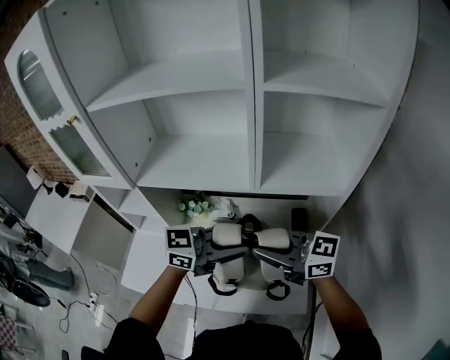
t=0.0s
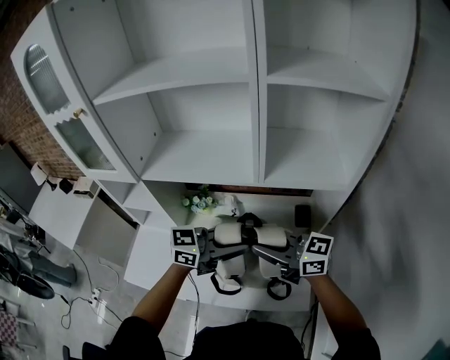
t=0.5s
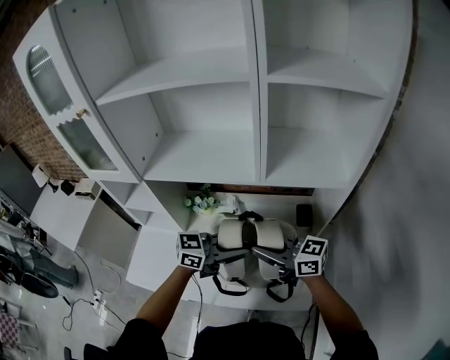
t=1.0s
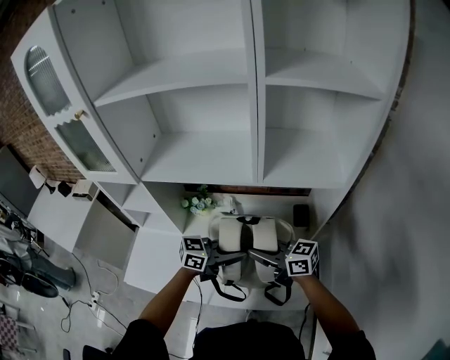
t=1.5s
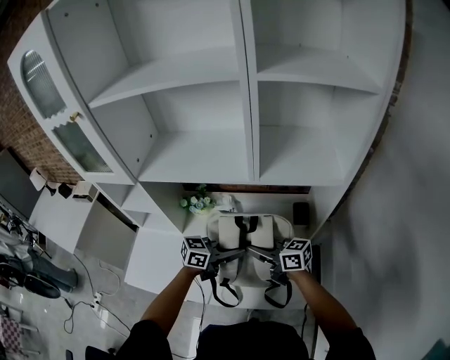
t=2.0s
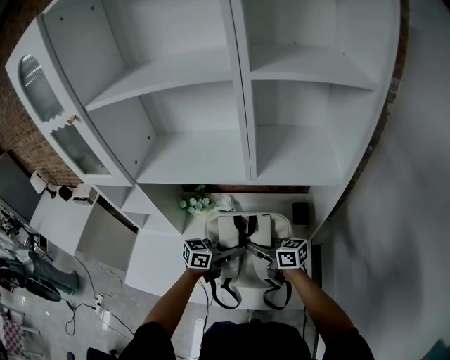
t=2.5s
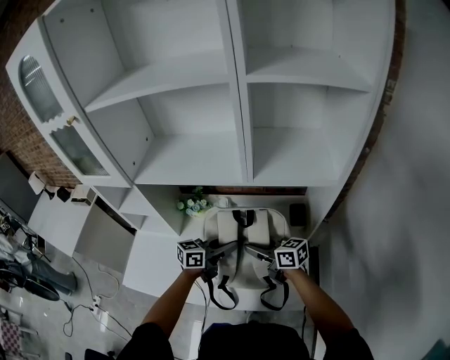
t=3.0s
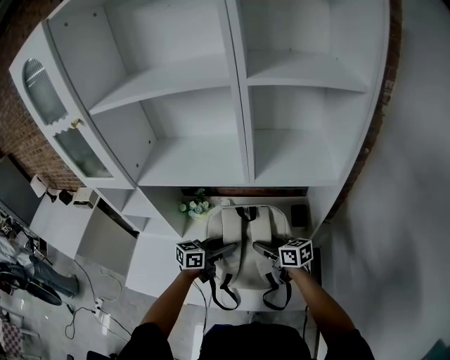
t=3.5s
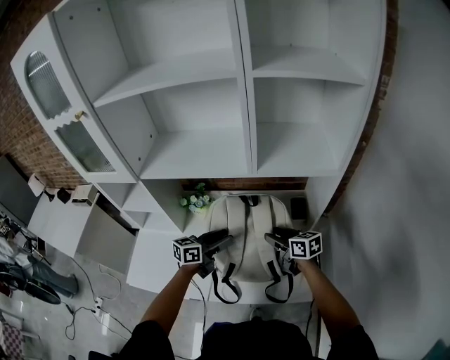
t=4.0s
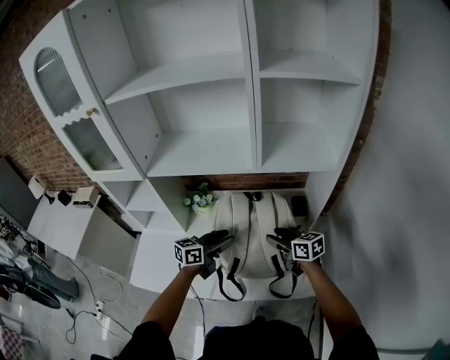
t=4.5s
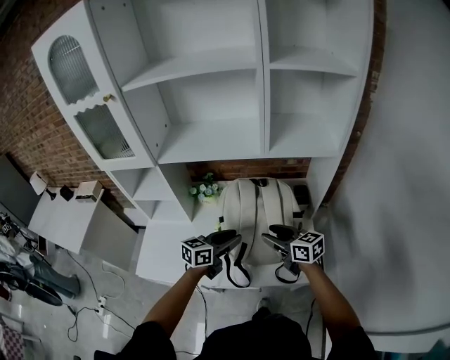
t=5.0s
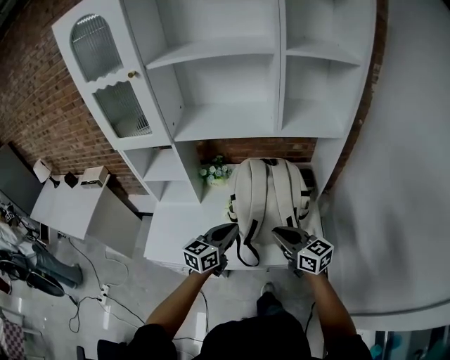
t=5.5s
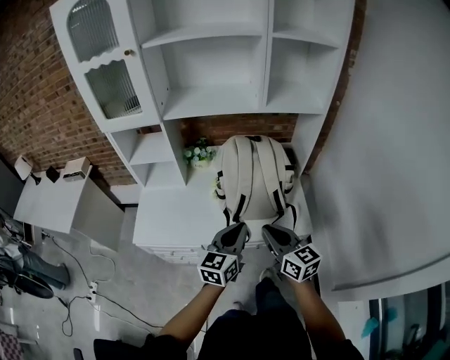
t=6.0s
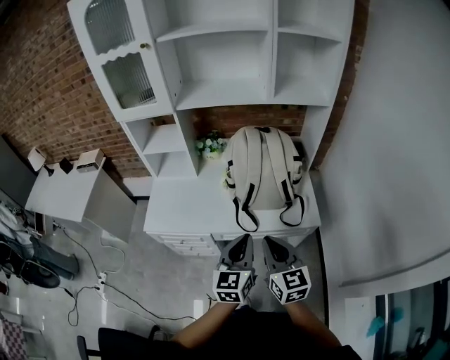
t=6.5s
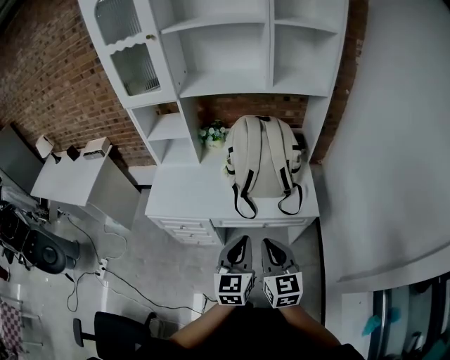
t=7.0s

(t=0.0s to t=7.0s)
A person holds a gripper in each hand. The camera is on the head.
t=0.0s - t=2.0s: Both grippers move downward, some 20 cm. The right gripper swivels about 20 degrees.
t=2.0s - t=3.5s: The left gripper changes place by some 5 cm, and opens; the right gripper changes place by approximately 5 cm, and opens its fingers.
t=3.5s - t=5.0s: The grippers both shift backward by some 10 cm.
t=5.0s - t=7.0s: Both grippers travel together backward, roughly 35 cm. The right gripper swivels about 40 degrees, and closes up, while the left gripper swivels some 40 degrees, and closes its fingers.

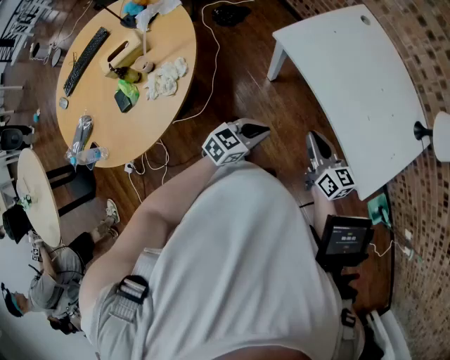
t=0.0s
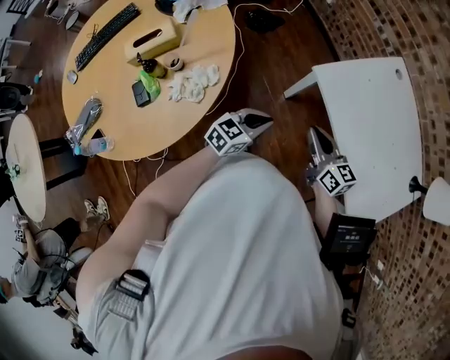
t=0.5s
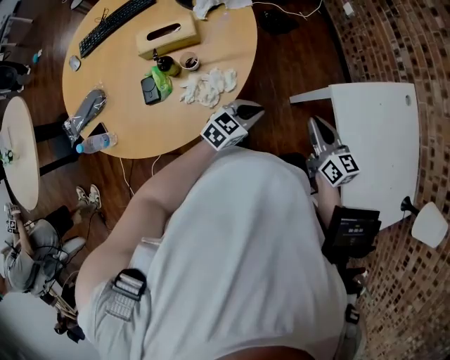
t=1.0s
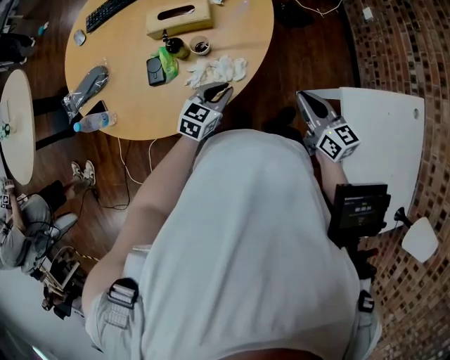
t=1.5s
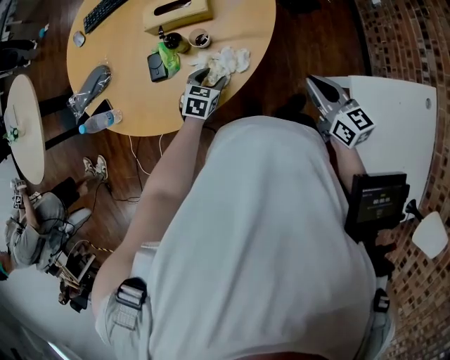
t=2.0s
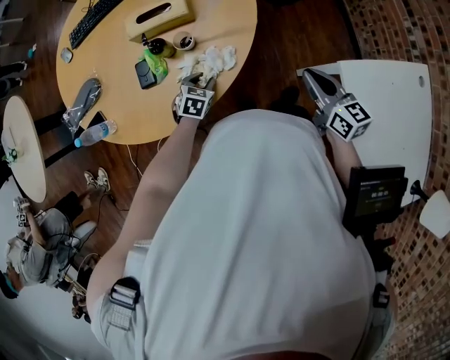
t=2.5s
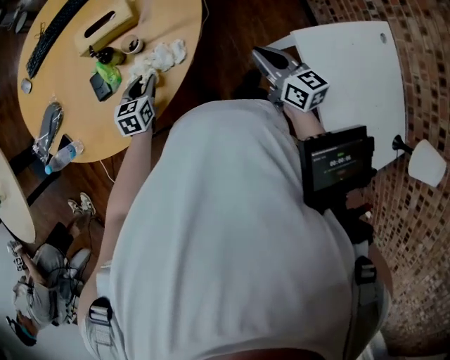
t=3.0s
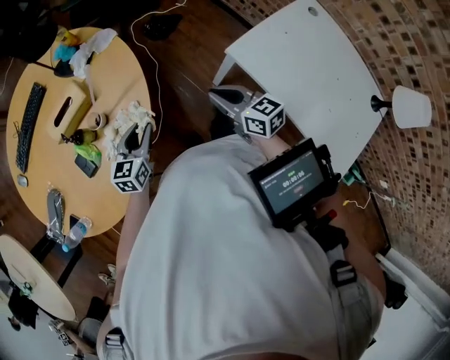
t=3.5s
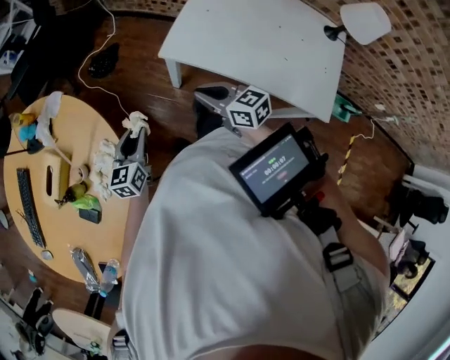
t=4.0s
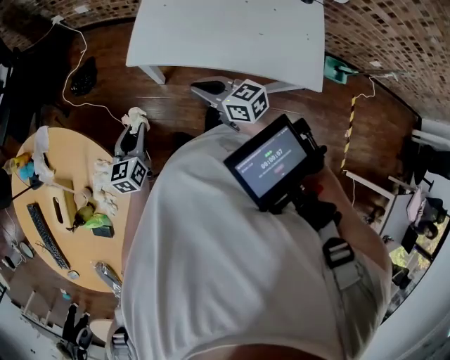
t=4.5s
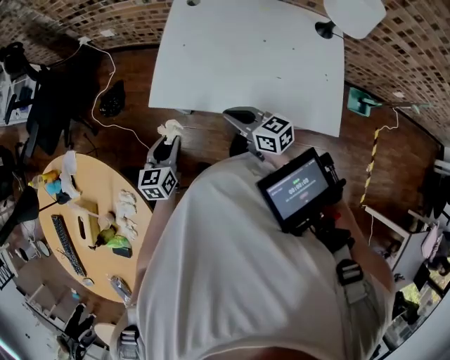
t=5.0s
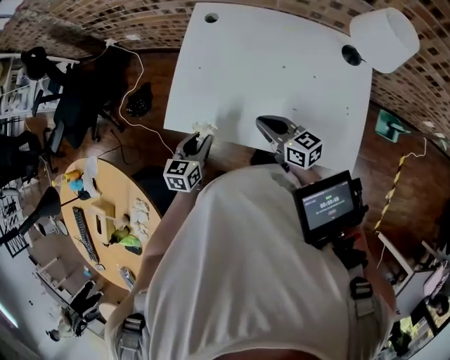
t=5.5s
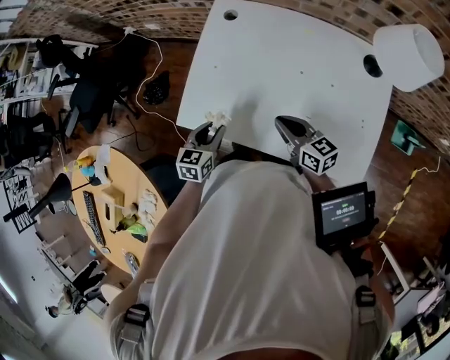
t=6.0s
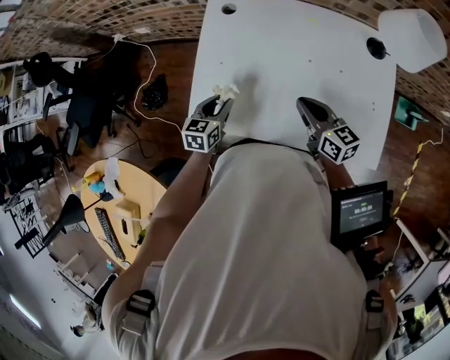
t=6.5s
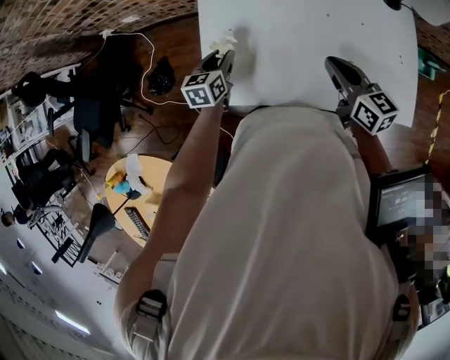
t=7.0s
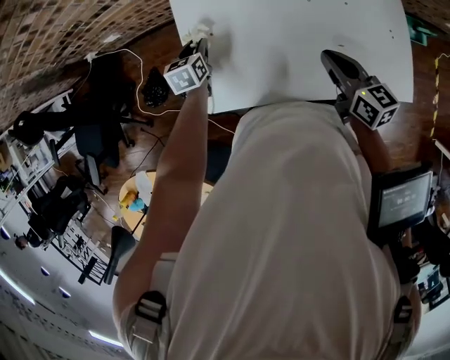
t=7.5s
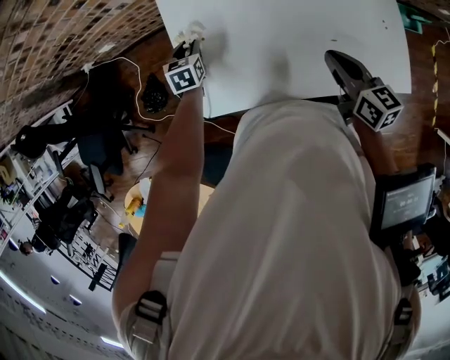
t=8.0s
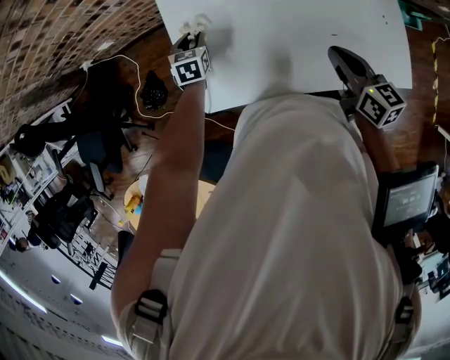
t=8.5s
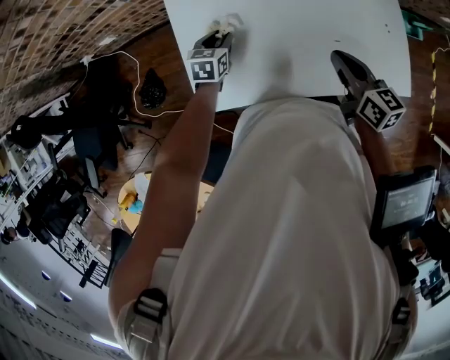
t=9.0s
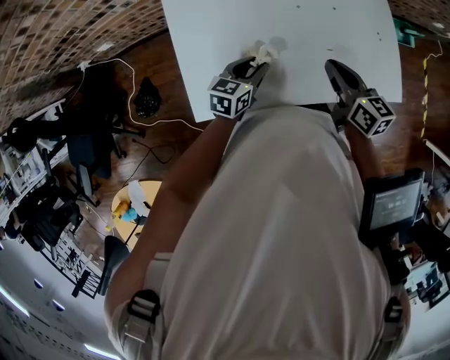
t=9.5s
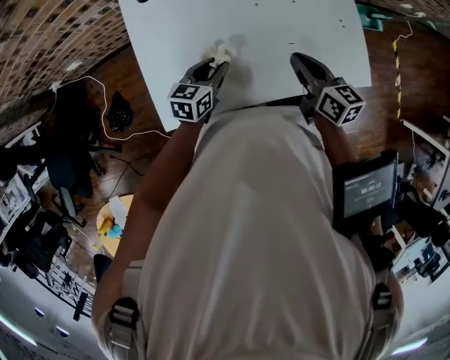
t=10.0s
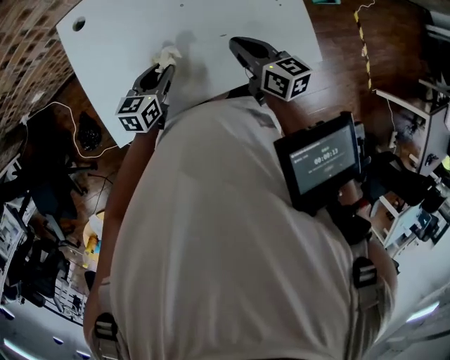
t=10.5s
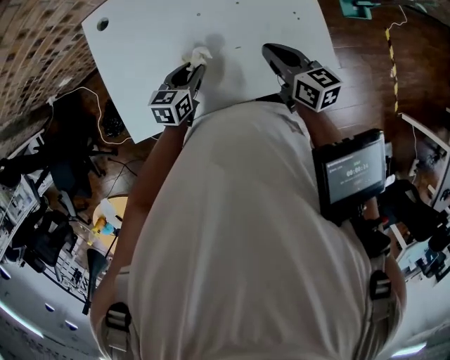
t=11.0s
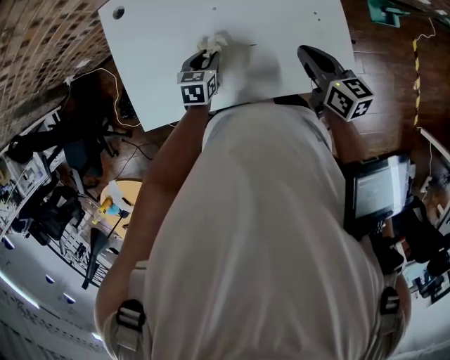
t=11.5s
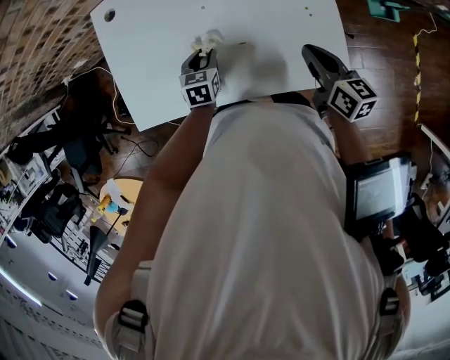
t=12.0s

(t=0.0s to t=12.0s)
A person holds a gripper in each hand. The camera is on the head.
t=0.0s - t=2.0s: The left gripper ends up about 50 cm from where it was, turns by approximately 60 degrees, and opens up, while the right gripper ends up about 40 cm from where it was, and swivels some 40 degrees.
t=2.0s - t=4.0s: The left gripper shifts by some 25 cm, swivels some 50 degrees, and closes its fingers; the right gripper ends up about 20 cm from where it was, and swivels some 40 degrees.
t=4.0s - t=6.0s: The right gripper heads to the right, covering approximately 30 cm, and rotates about 20 degrees; the left gripper travels to the right and forward by some 35 cm, and changes its angle by approximately 30 degrees.
t=6.0s - t=8.0s: The left gripper shifts approximately 25 cm forward, while the right gripper rotates roughly 40 degrees.
t=8.0s - t=10.0s: The left gripper moves to the right and backward, approximately 20 cm, and rotates roughly 40 degrees.
t=10.0s - t=12.0s: The left gripper shifts about 10 cm to the right, and swivels about 30 degrees; the right gripper travels to the right by roughly 20 cm.

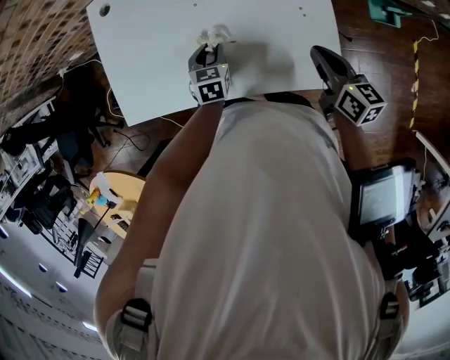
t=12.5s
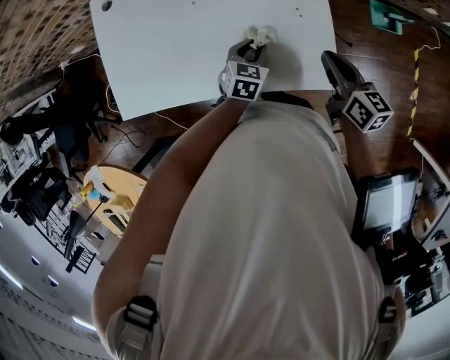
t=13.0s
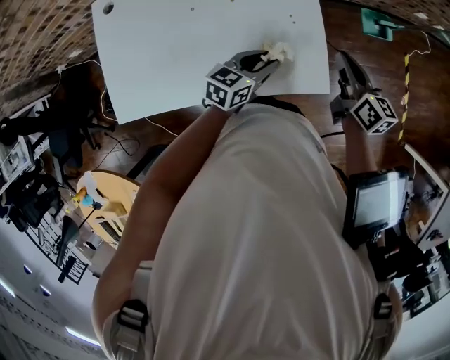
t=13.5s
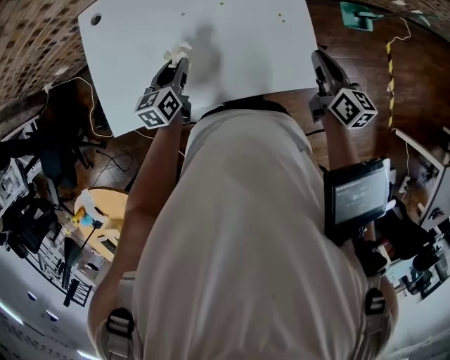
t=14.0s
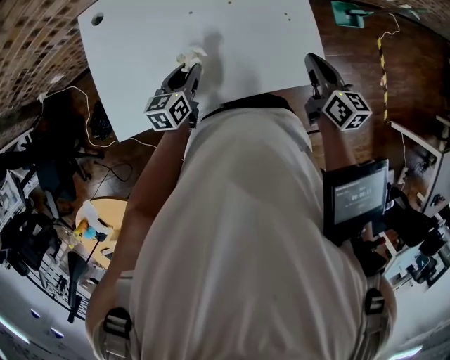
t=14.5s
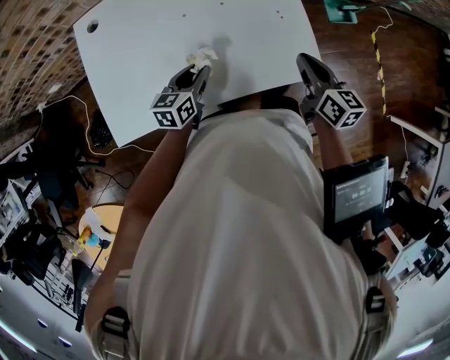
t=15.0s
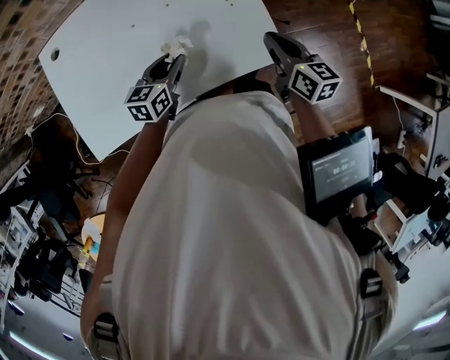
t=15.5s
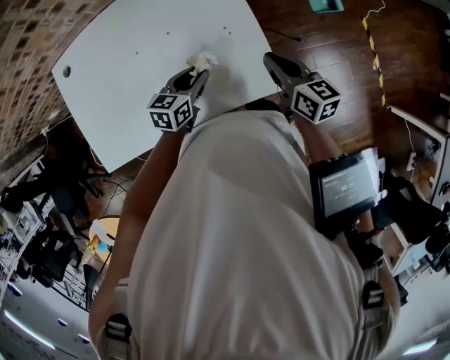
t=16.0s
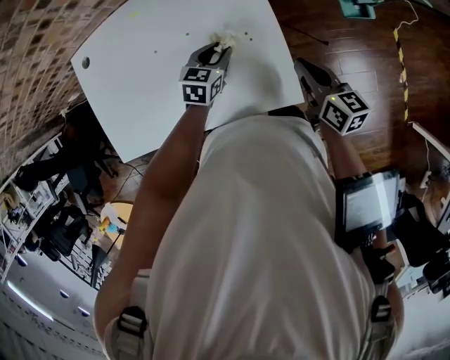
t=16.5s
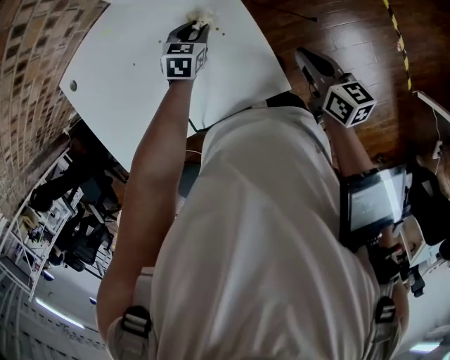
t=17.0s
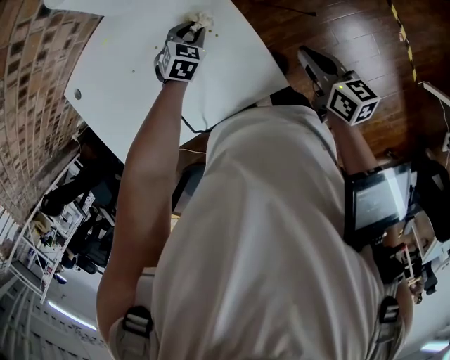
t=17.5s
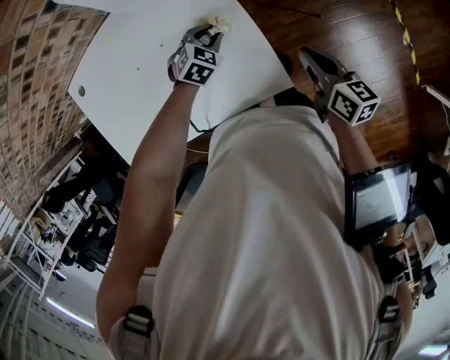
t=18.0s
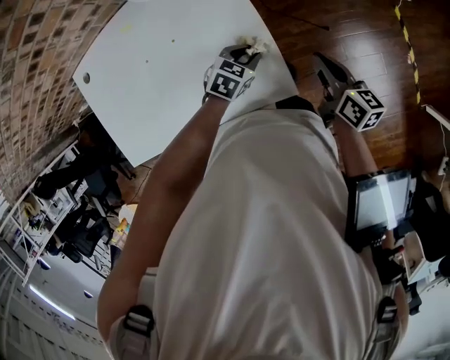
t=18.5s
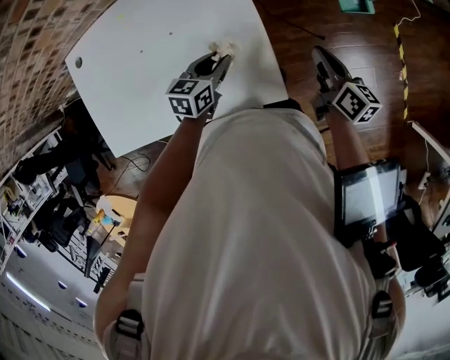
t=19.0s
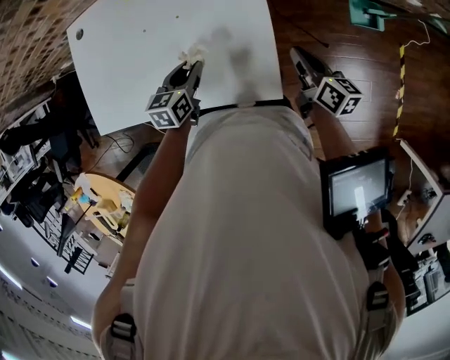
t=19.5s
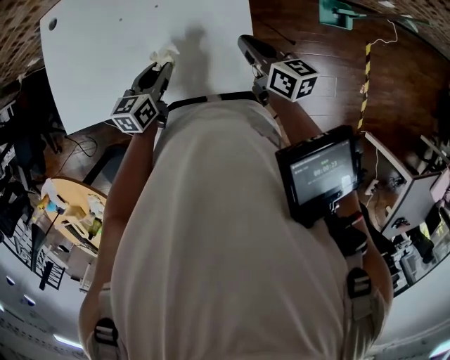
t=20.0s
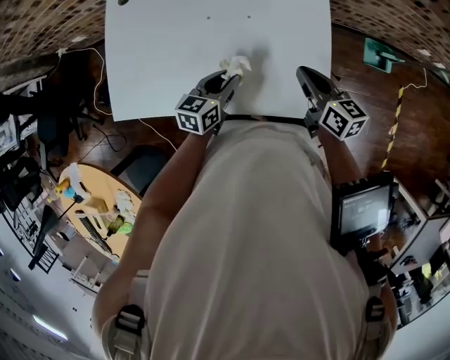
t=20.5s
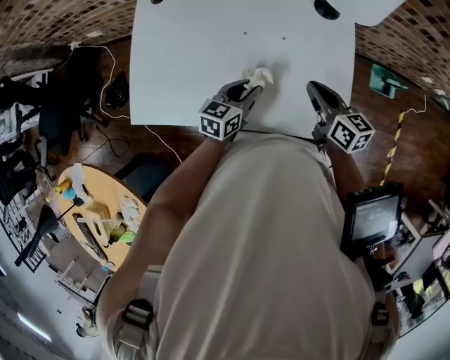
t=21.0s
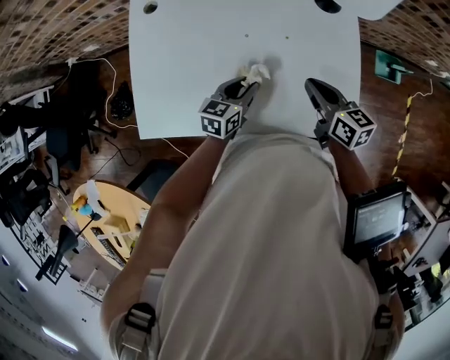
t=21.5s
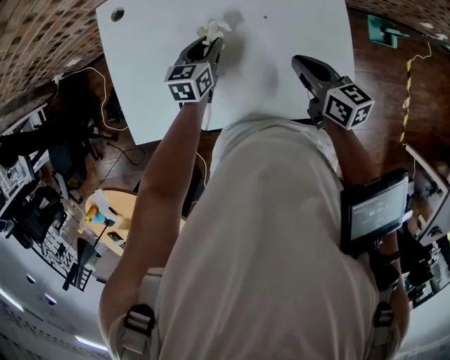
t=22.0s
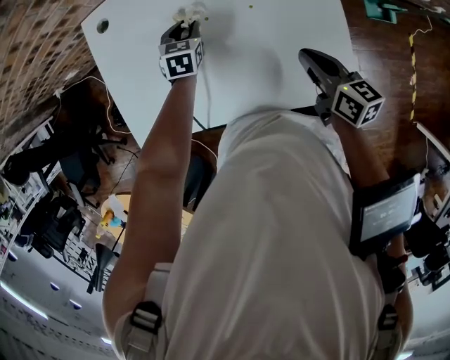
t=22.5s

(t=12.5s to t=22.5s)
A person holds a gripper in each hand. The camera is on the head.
t=12.5s - t=14.5s: The left gripper turns by roughly 30 degrees.
t=14.5s - t=16.5s: The left gripper is displaced to the right and forward by roughly 30 cm, and changes its angle by about 30 degrees. Meanwhile the right gripper travels to the right and forward by approximately 15 cm.
t=16.5s - t=18.5s: The left gripper travels to the right by approximately 10 cm, goes forward and returns, some 5 cm each way, and turns by approximately 20 degrees. The right gripper travels to the right by some 5 cm.
t=18.5s - t=20.5s: The left gripper changes place by about 25 cm, and rotates roughly 50 degrees. The right gripper changes place by roughly 20 cm, and rotates approximately 30 degrees.
t=20.5s - t=22.5s: The left gripper goes approximately 25 cm forward and to the left, and swivels roughly 30 degrees, while the right gripper moves to the left, some 5 cm.
